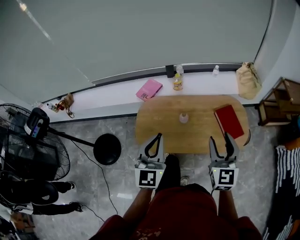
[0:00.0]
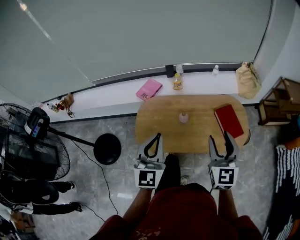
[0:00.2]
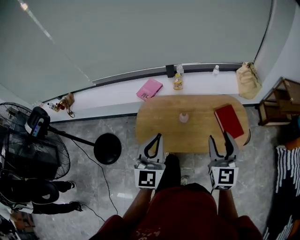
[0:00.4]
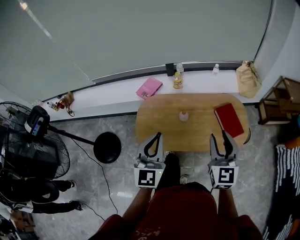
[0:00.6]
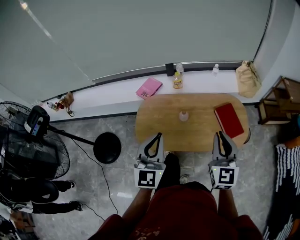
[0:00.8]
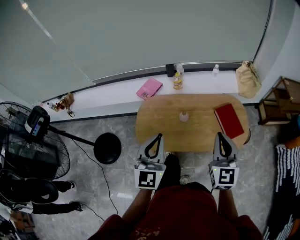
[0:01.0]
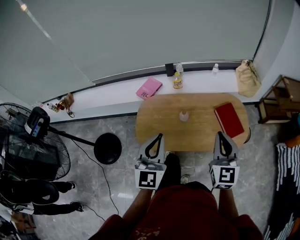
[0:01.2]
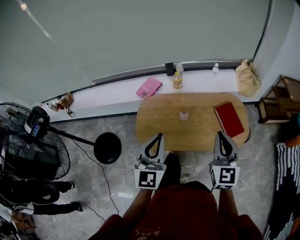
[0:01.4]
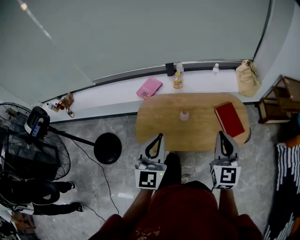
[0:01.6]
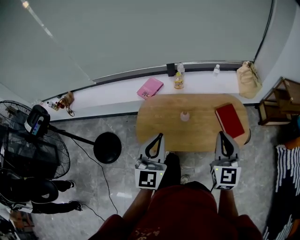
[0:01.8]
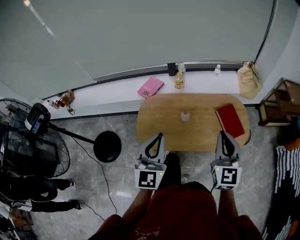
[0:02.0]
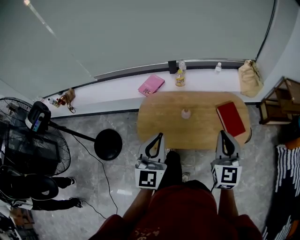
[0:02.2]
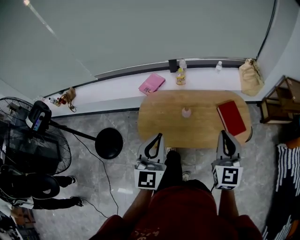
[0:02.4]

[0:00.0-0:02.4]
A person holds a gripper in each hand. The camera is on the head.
0:00.0 to 0:01.2: The right gripper closes its fingers.
0:01.2 to 0:02.4: The grippers move only a little.

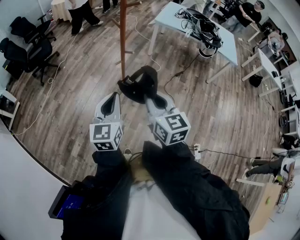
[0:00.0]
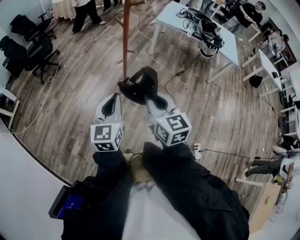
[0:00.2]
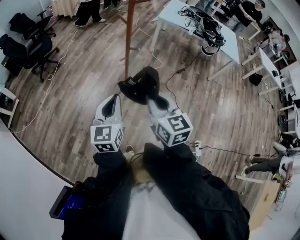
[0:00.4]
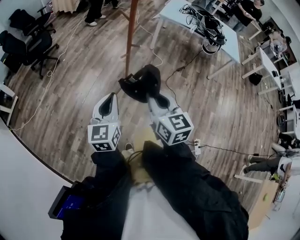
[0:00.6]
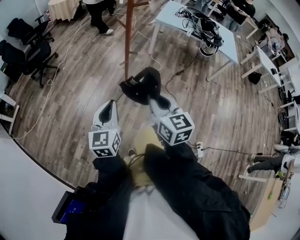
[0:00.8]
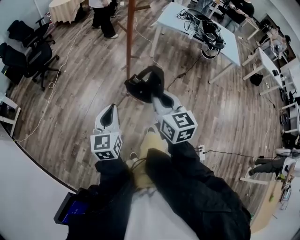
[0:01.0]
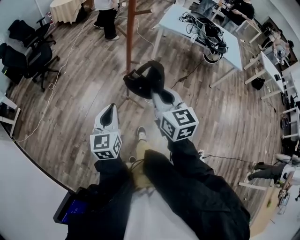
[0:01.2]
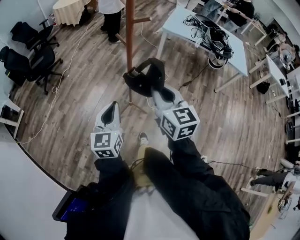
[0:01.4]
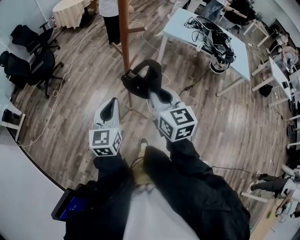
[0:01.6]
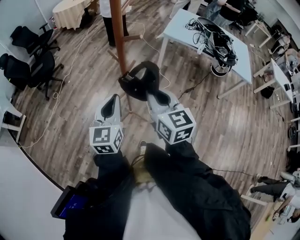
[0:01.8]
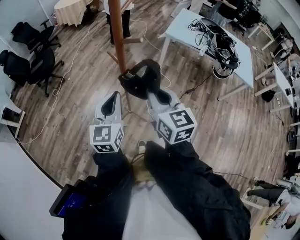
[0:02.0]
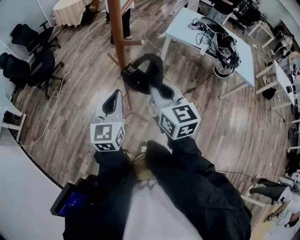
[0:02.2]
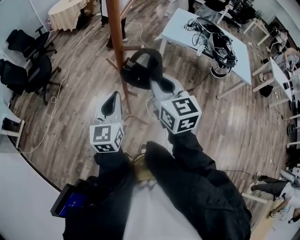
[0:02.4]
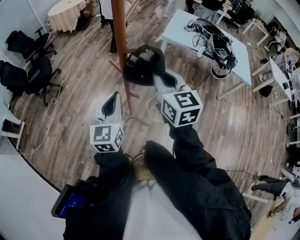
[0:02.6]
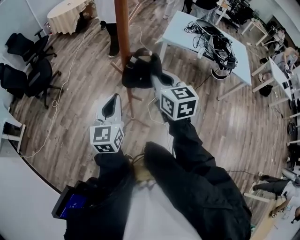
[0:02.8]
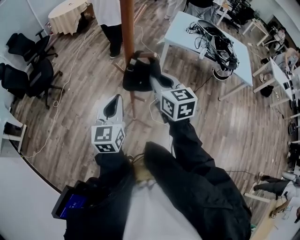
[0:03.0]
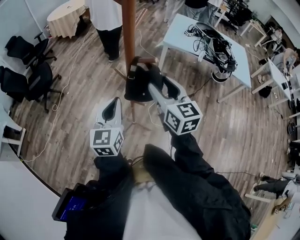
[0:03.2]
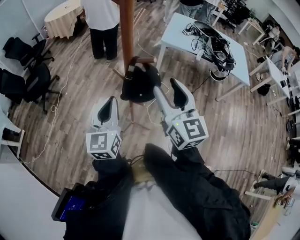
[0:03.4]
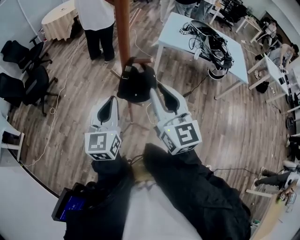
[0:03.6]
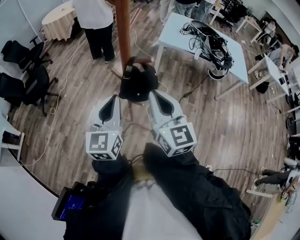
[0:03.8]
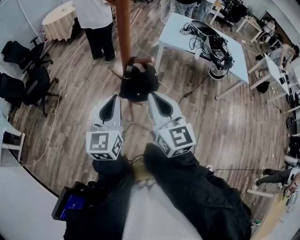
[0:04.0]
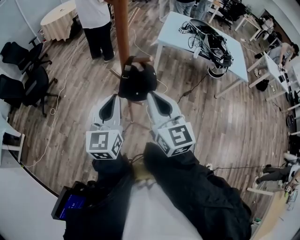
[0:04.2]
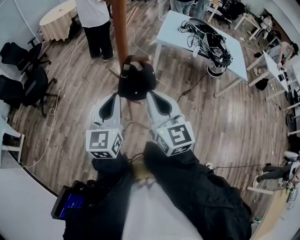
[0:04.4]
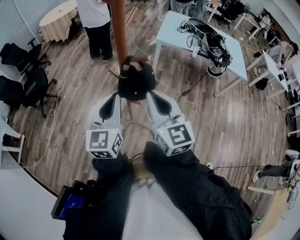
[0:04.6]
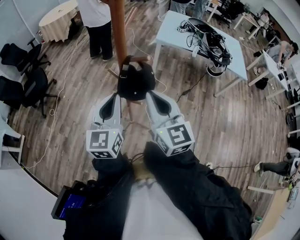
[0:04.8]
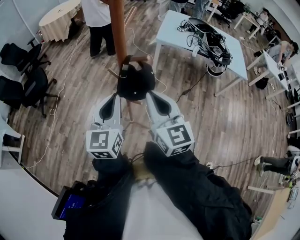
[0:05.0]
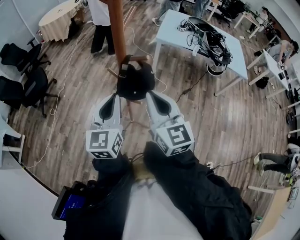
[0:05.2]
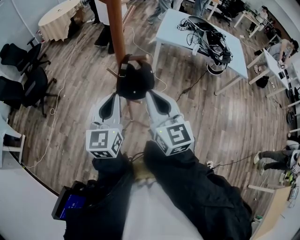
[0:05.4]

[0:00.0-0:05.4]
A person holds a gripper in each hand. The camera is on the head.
0:00.0 to 0:01.4: Both grippers travel together forward, roughly 15 cm.
0:01.4 to 0:02.8: Both grippers move forward, some 20 cm.
0:02.8 to 0:04.0: The right gripper is displaced backward by some 5 cm, and opens, then closes once more.
0:04.0 to 0:05.4: The grippers move only a little.

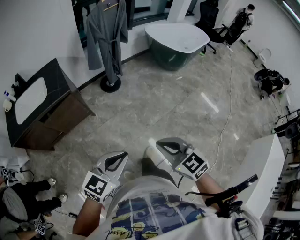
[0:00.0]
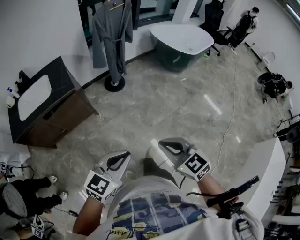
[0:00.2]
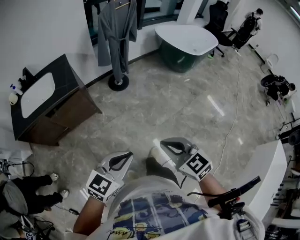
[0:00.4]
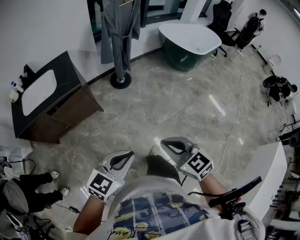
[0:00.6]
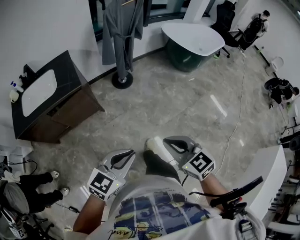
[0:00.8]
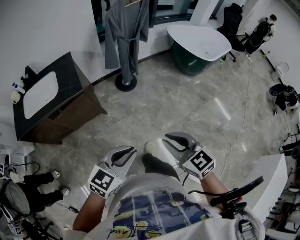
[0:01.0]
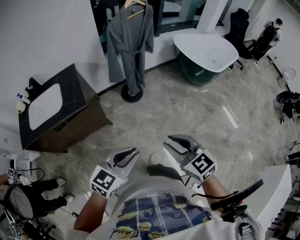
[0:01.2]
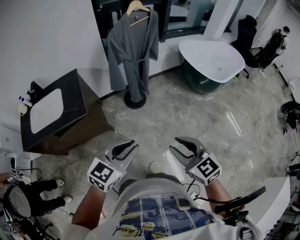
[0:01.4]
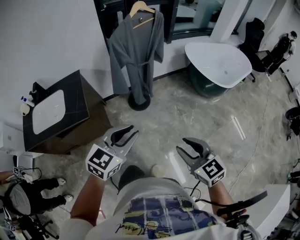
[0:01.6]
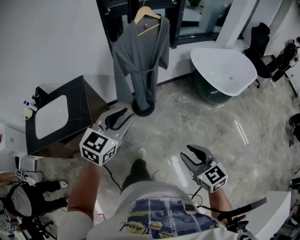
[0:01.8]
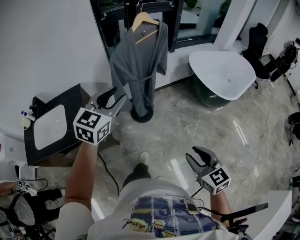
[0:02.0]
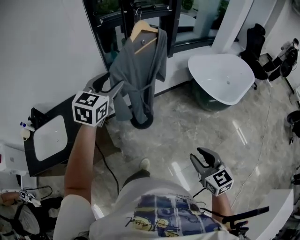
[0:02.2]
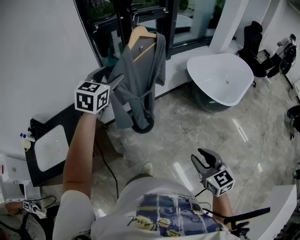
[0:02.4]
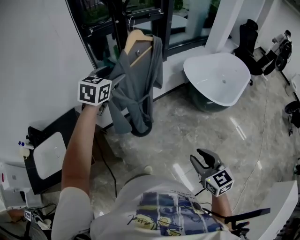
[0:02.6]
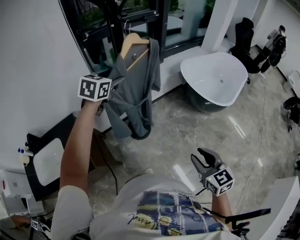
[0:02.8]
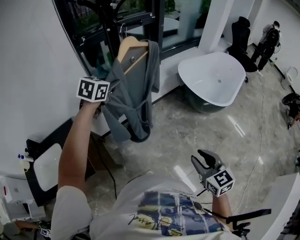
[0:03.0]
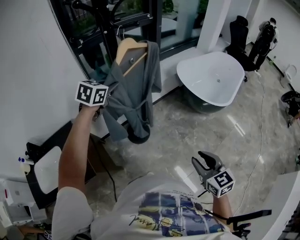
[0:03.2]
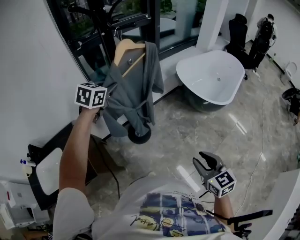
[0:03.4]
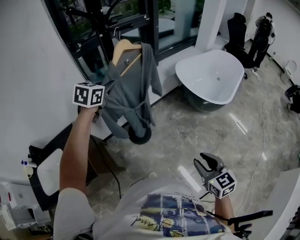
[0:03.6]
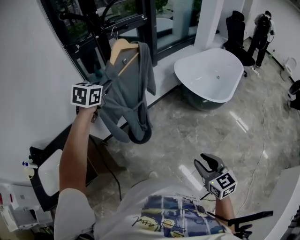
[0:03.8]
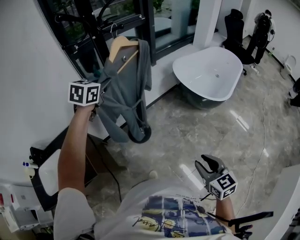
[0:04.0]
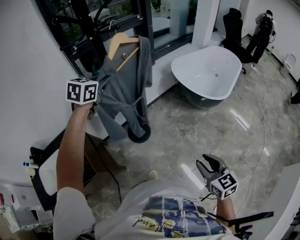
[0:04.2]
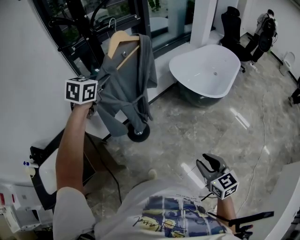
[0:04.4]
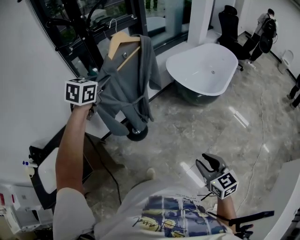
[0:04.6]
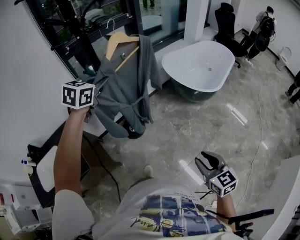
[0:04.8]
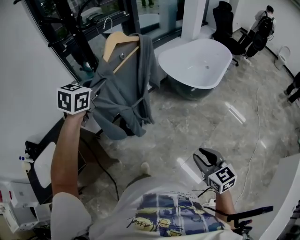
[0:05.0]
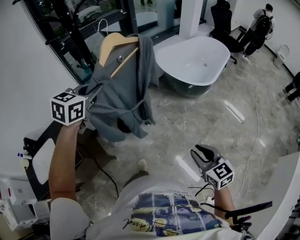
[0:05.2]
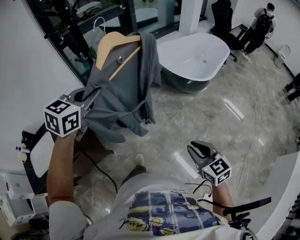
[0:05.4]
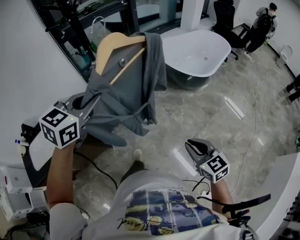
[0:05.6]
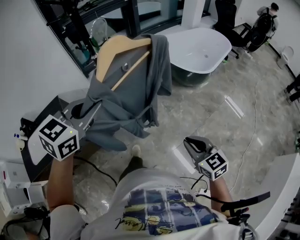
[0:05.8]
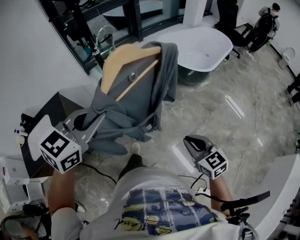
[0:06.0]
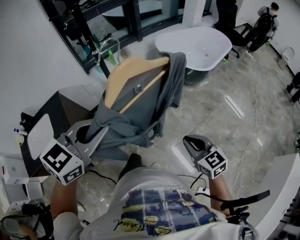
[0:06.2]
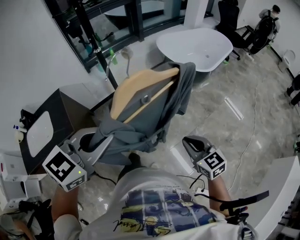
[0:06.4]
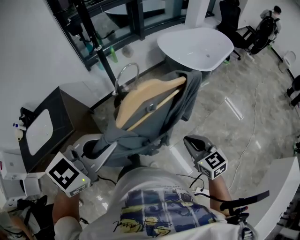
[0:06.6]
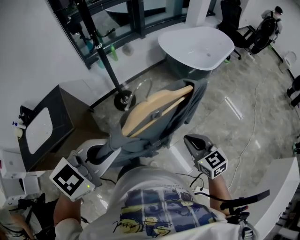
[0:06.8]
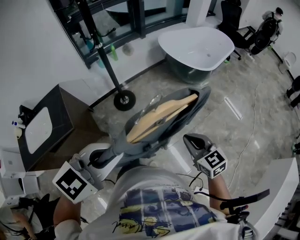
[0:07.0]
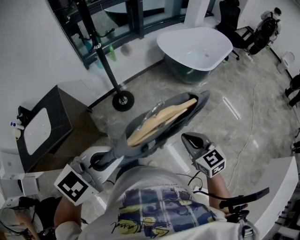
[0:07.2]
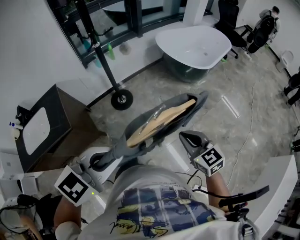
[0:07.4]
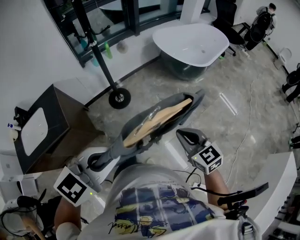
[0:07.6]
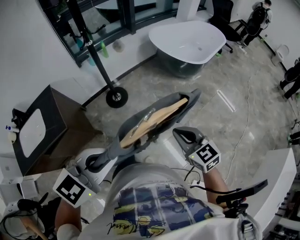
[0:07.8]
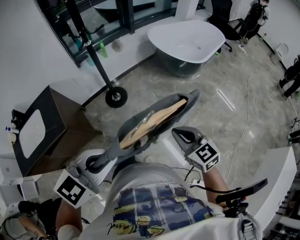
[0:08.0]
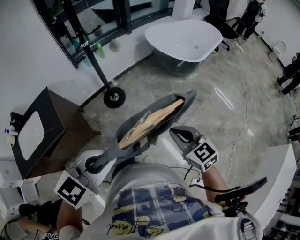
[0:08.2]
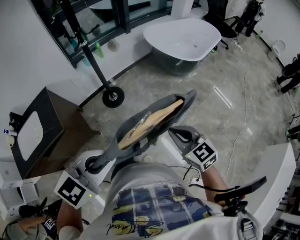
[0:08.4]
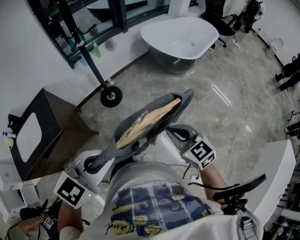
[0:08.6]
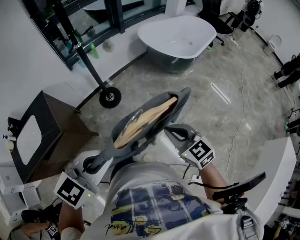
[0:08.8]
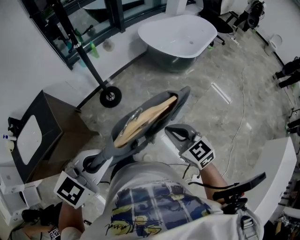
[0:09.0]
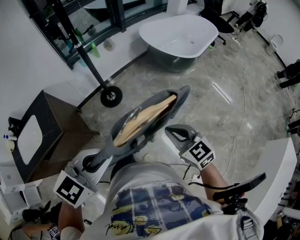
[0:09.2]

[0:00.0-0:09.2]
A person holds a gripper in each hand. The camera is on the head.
0:00.0 to 0:01.6: The grippers both shift forward by approximately 35 cm. The right gripper opens.
0:01.6 to 0:03.0: The right gripper goes approximately 20 cm forward, and turns by about 20 degrees, while the left gripper goes some 50 cm forward, and opens, then closes once more.
0:03.0 to 0:04.6: The right gripper shifts approximately 10 cm to the right and backward; the left gripper moves to the right and upward, about 10 cm, and closes up.
0:04.6 to 0:06.2: The left gripper heads backward, covering approximately 40 cm. The right gripper is displaced backward and to the right by roughly 10 cm, and closes its fingers.
0:06.2 to 0:07.6: The left gripper travels backward by approximately 10 cm.
0:07.6 to 0:09.2: The grippers move only a little.

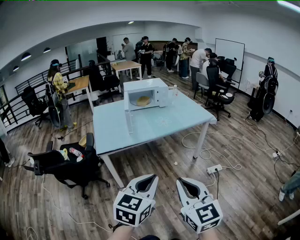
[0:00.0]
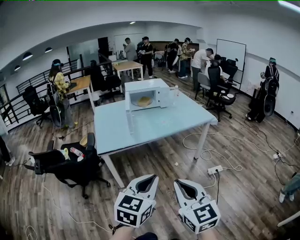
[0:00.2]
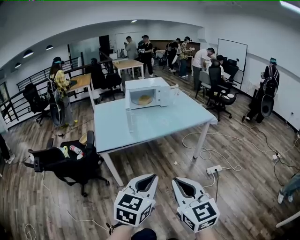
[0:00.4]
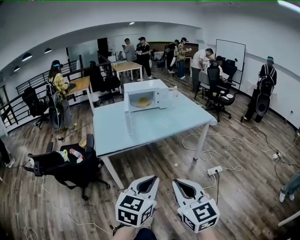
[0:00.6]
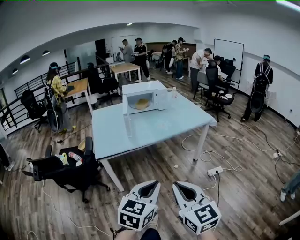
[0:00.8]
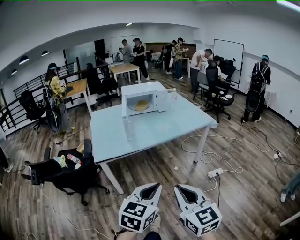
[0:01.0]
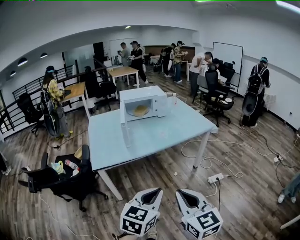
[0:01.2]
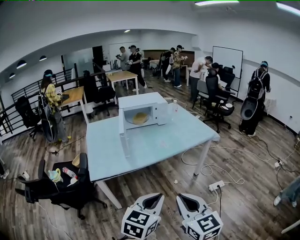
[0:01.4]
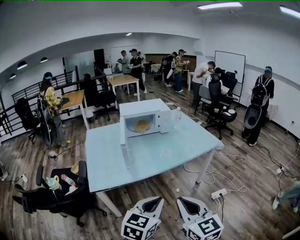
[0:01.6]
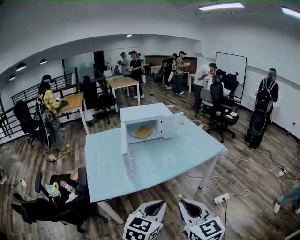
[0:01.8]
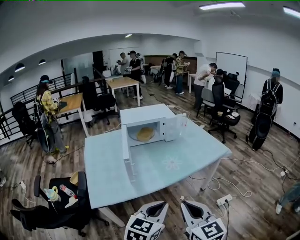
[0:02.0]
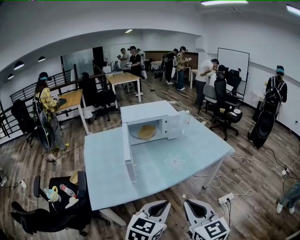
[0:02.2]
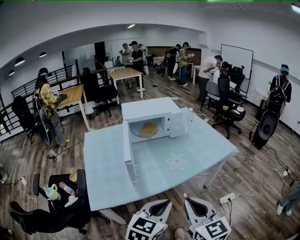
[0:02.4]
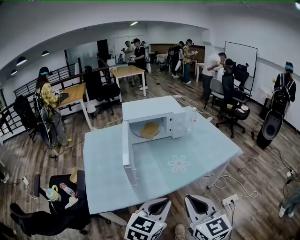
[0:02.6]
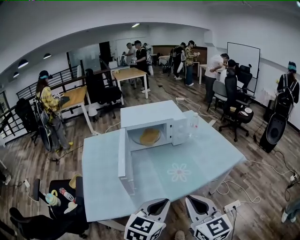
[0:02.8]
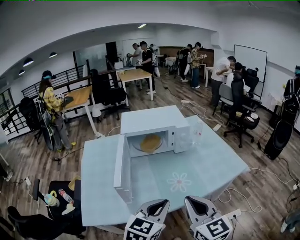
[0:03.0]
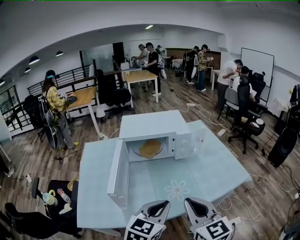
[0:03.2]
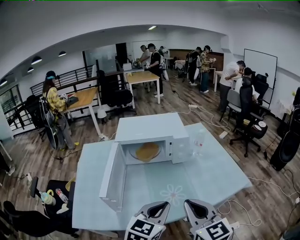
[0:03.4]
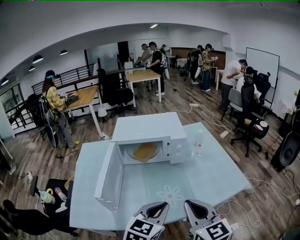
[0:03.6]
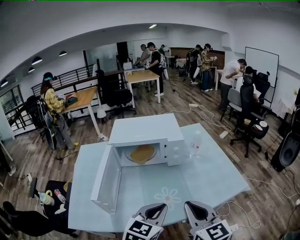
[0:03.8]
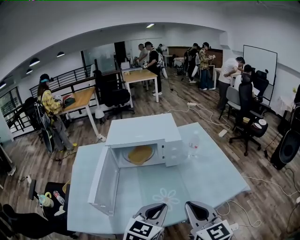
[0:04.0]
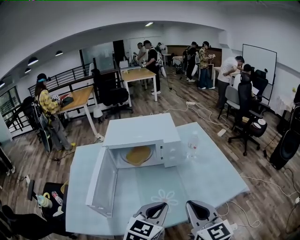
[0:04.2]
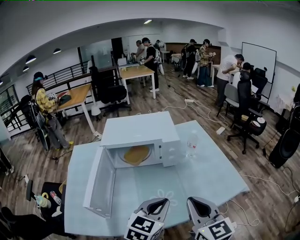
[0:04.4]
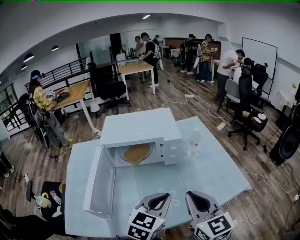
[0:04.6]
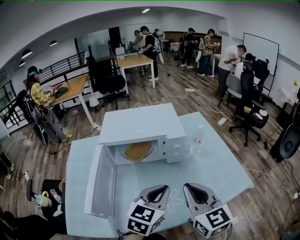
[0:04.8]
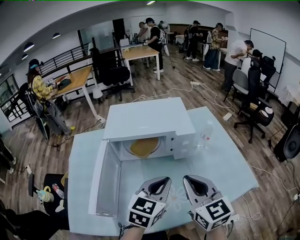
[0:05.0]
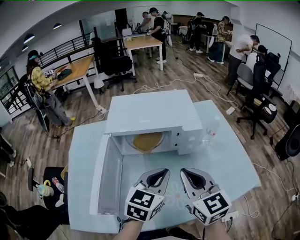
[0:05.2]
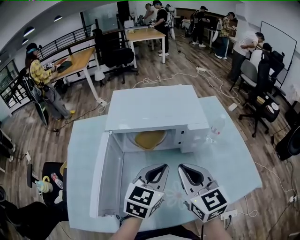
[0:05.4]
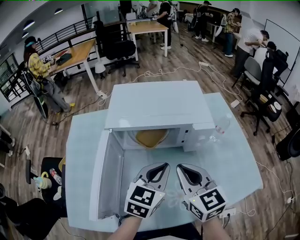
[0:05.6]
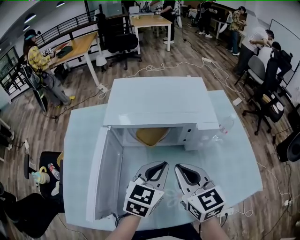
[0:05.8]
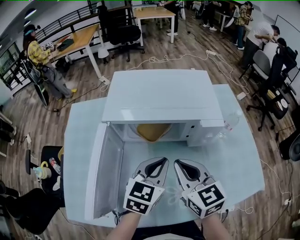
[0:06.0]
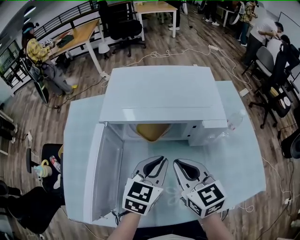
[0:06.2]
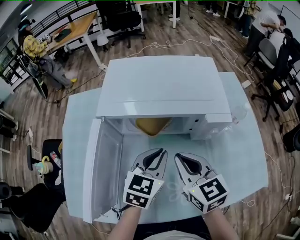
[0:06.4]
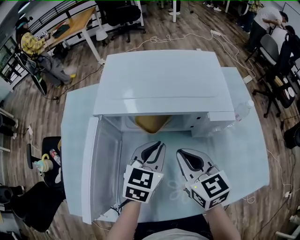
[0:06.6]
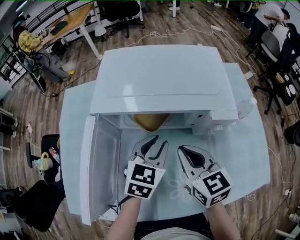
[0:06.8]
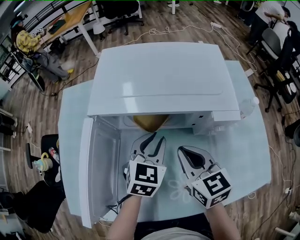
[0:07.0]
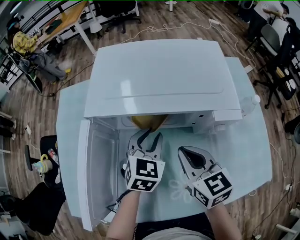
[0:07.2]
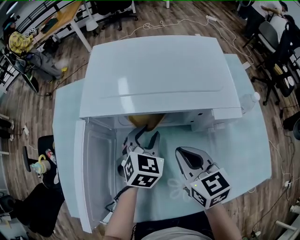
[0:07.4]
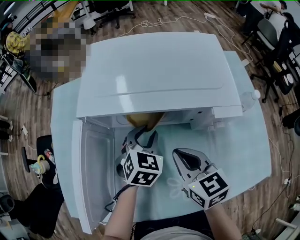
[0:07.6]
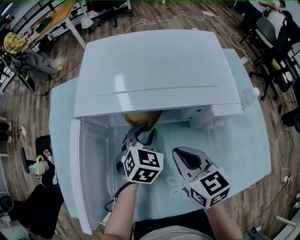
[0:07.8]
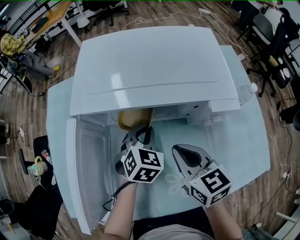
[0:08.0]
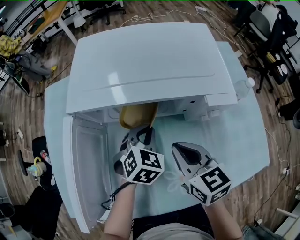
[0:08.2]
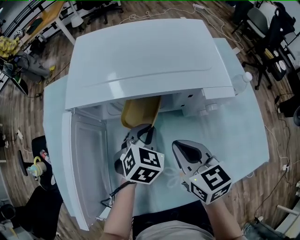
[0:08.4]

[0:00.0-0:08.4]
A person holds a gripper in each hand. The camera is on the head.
0:00.0 to 0:01.4: Both grippers travel together forward, about 15 cm.
0:01.4 to 0:02.8: Both grippers move forward, about 30 cm.
0:02.8 to 0:04.2: Both grippers travel together forward and to the right, some 20 cm.
0:04.2 to 0:05.6: Both grippers move forward and to the left, roughly 20 cm.
0:05.6 to 0:07.0: The right gripper travels downward and forward by roughly 10 cm. The left gripper is displaced forward and downward by some 15 cm.
0:07.0 to 0:08.4: The left gripper heads downward, covering approximately 5 cm.
